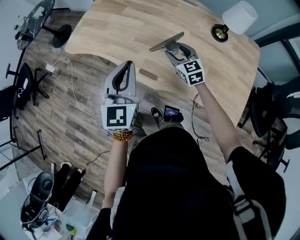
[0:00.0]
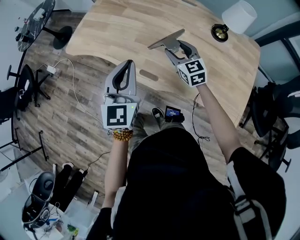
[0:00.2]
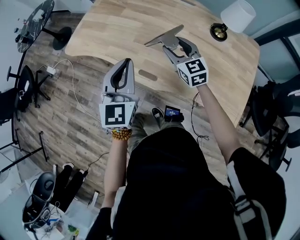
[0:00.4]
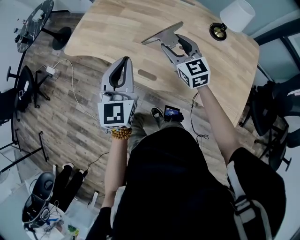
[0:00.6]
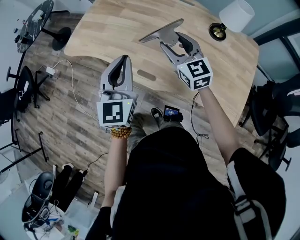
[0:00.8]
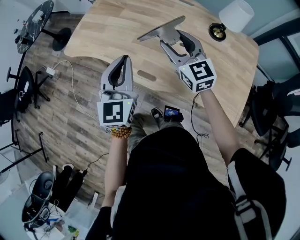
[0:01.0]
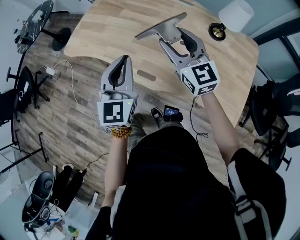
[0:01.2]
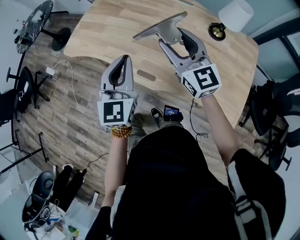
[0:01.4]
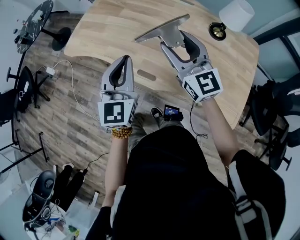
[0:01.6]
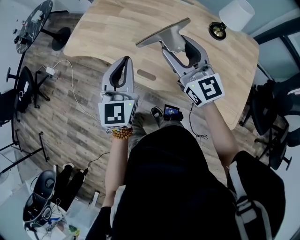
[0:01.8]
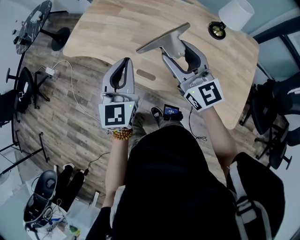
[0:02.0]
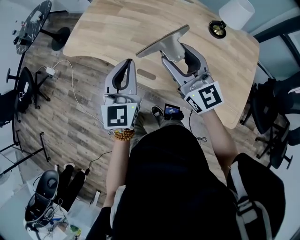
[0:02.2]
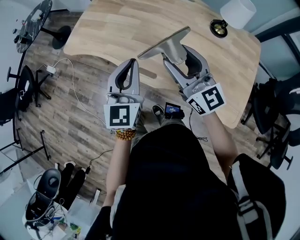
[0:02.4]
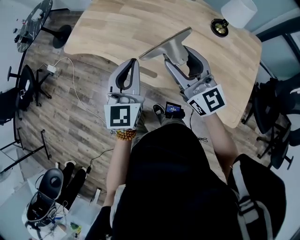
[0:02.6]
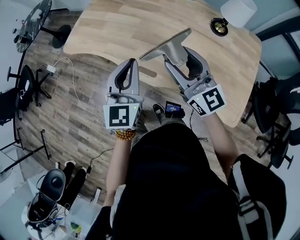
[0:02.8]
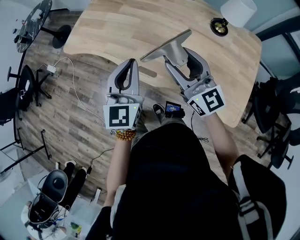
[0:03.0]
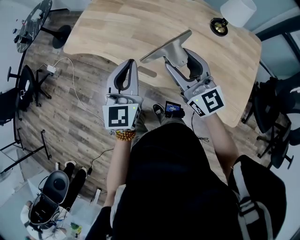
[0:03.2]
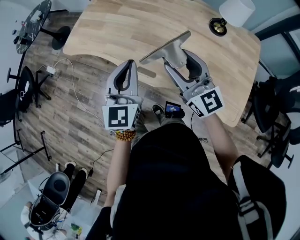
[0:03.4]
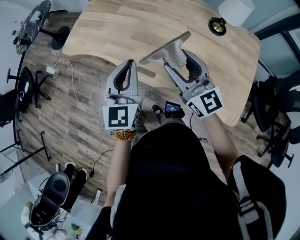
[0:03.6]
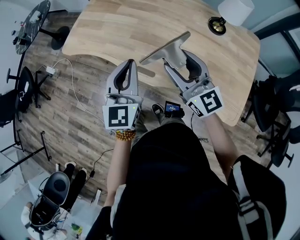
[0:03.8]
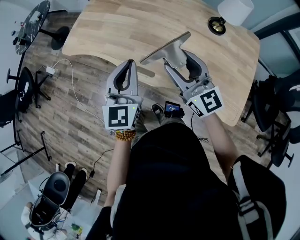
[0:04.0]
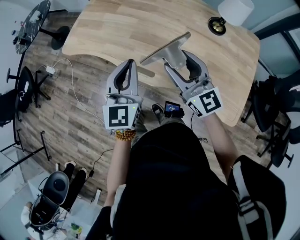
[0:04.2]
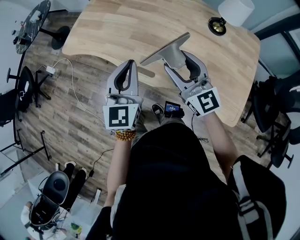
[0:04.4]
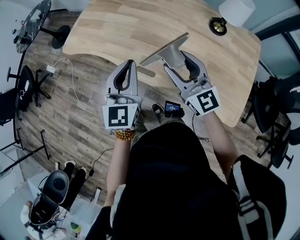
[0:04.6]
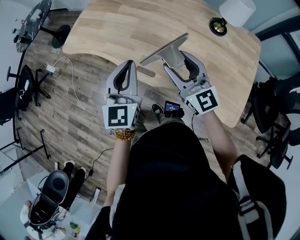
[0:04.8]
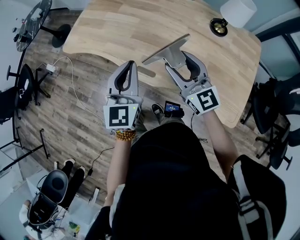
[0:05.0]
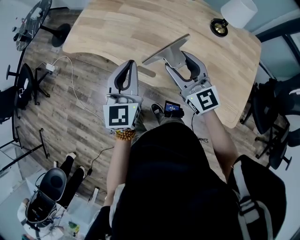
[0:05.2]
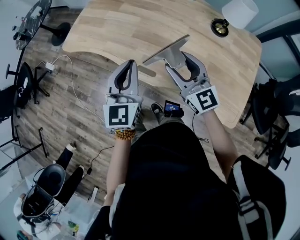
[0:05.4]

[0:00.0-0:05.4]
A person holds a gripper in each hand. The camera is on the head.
0.0 to 1.4 s: The right gripper travels upward by roughly 20 cm, and turns by roughly 30 degrees.
1.4 to 2.8 s: The right gripper travels backward by about 5 cm.
2.8 to 5.4 s: The grippers stay close to where they were, moving slightly.

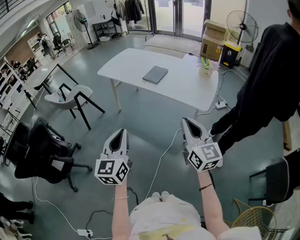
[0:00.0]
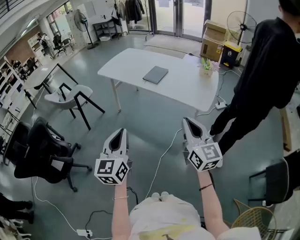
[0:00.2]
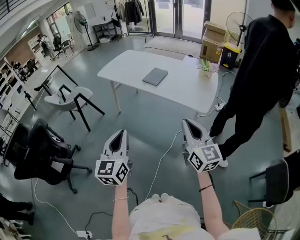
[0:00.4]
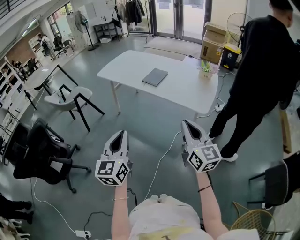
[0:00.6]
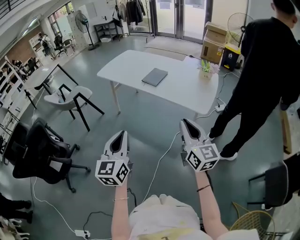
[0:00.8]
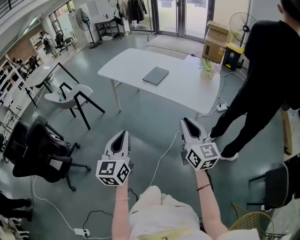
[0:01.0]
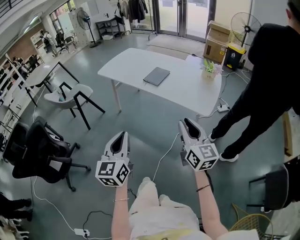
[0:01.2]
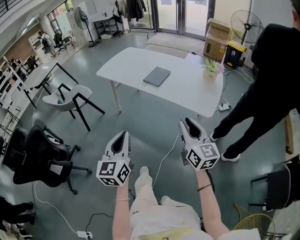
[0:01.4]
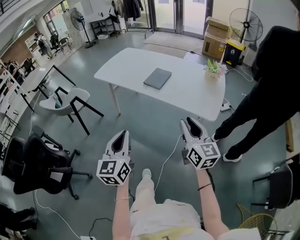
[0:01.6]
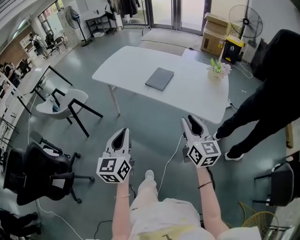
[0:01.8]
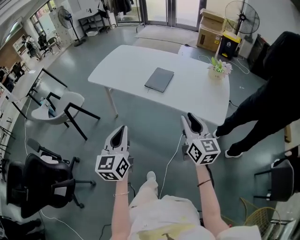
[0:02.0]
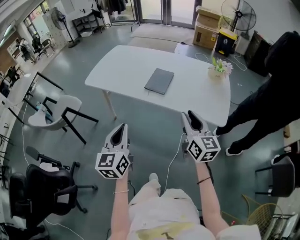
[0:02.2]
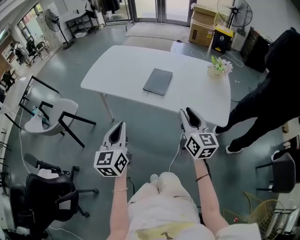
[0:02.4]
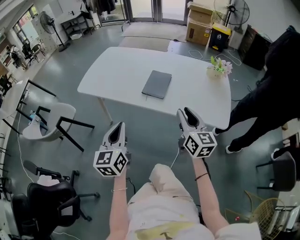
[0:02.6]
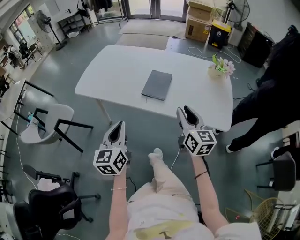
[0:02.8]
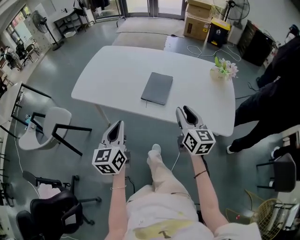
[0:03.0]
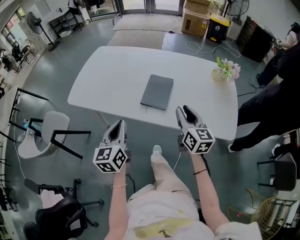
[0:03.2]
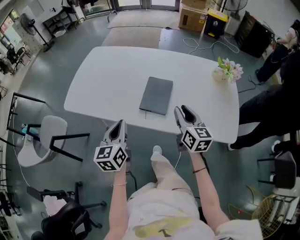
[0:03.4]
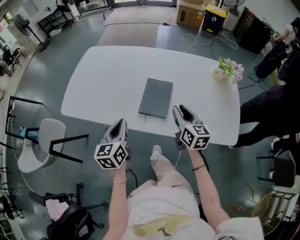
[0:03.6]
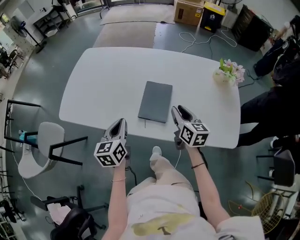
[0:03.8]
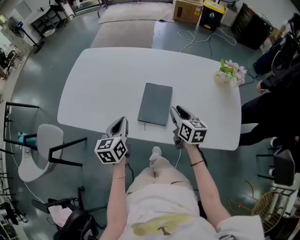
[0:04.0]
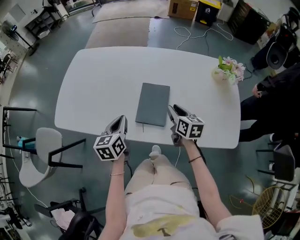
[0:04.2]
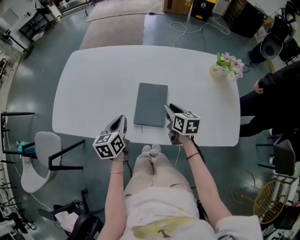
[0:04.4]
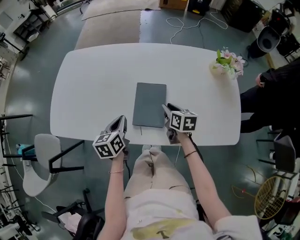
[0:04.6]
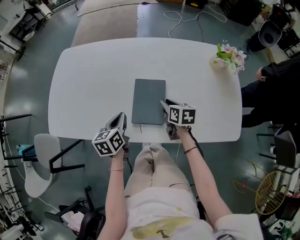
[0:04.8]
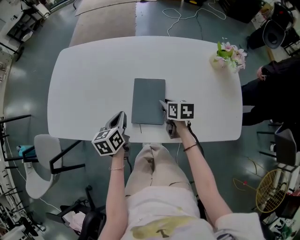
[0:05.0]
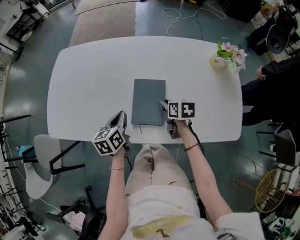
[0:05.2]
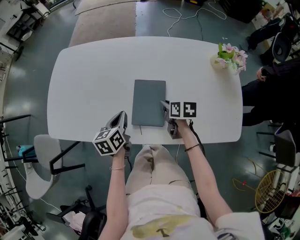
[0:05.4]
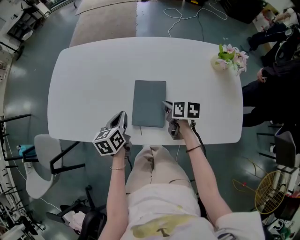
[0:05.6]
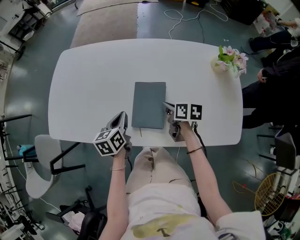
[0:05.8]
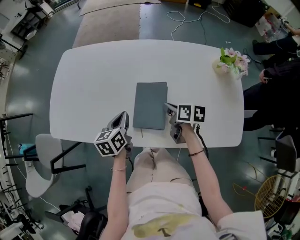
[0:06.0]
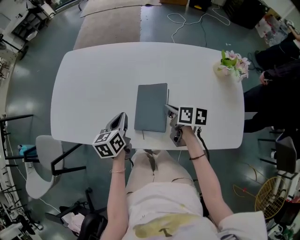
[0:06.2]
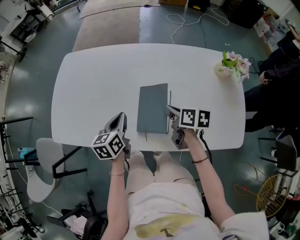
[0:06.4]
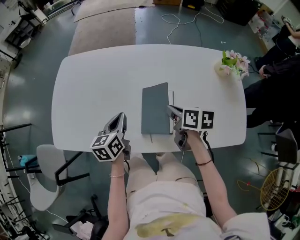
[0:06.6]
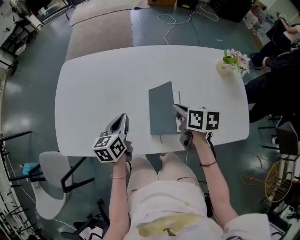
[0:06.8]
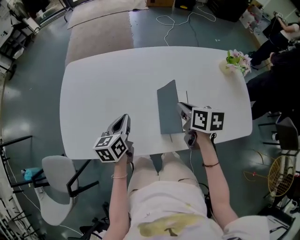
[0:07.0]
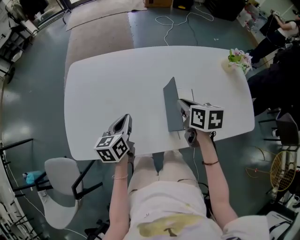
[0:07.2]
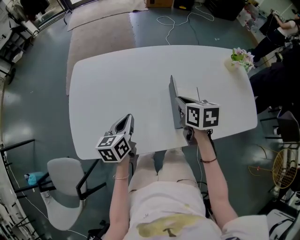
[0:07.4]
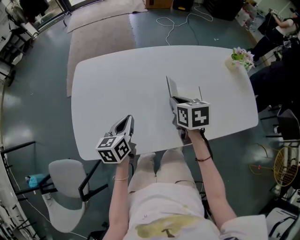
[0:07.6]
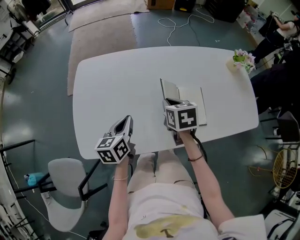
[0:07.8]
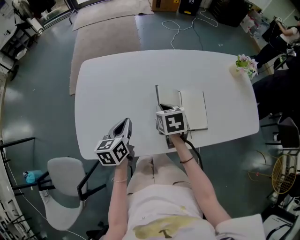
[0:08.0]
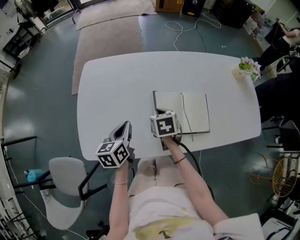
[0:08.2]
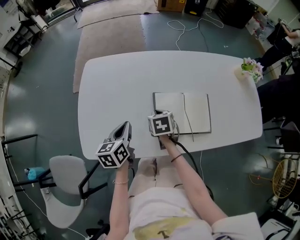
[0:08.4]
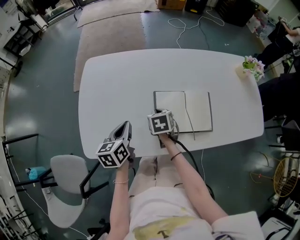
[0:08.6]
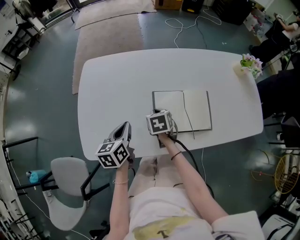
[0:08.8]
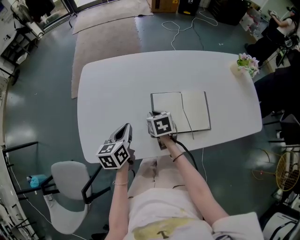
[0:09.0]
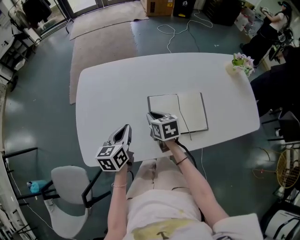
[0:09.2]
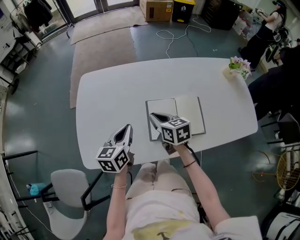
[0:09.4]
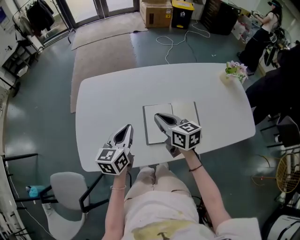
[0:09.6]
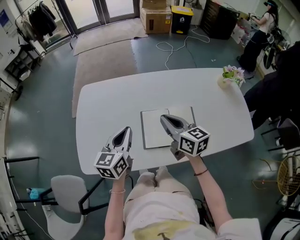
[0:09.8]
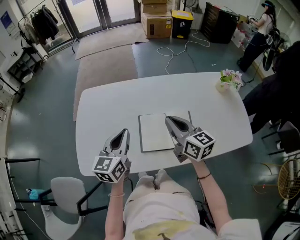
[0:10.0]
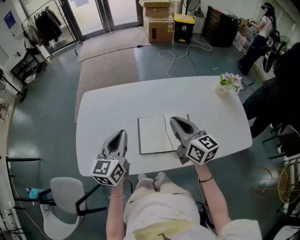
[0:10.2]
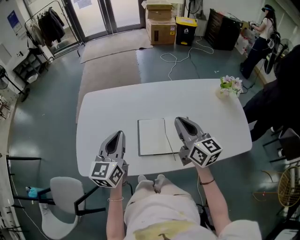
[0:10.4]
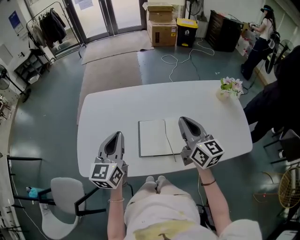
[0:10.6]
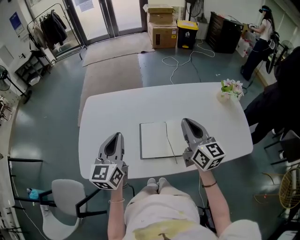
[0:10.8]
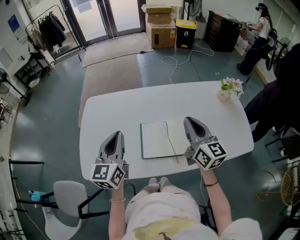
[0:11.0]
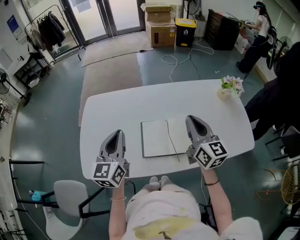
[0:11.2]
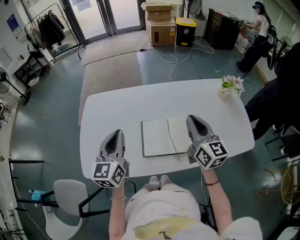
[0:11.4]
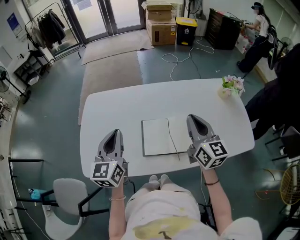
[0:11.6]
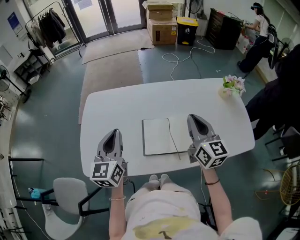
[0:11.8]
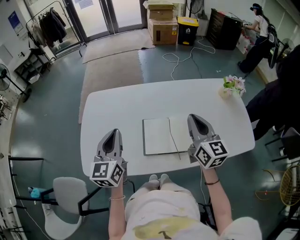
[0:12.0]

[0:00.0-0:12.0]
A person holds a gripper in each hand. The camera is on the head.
0.0 to 1.6 s: The right gripper is displaced forward and downward by roughly 15 cm, and opens up, while the left gripper shifts about 10 cm forward.
1.6 to 3.0 s: The two grippers go approximately 35 cm forward.
3.0 to 4.4 s: Both grippers move forward and downward, about 30 cm. The left gripper swivels approximately 30 degrees. Meanwhile the right gripper rotates approximately 30 degrees.
4.4 to 6.0 s: The right gripper turns by some 20 degrees; the left gripper moves some 5 cm.
6.0 to 7.6 s: The left gripper heads to the left, covering about 20 cm; the right gripper travels to the left and upward by some 20 cm, and turns by some 30 degrees.
7.6 to 9.0 s: The left gripper moves roughly 5 cm; the right gripper is displaced to the left and downward by roughly 15 cm.
9.0 to 10.4 s: The left gripper moves upward and to the right, about 20 cm, and rotates about 30 degrees; the right gripper goes about 30 cm upward and to the right, and tilts its fingers about 50 degrees upward.
10.4 to 12.0 s: The grippers make only small movements.

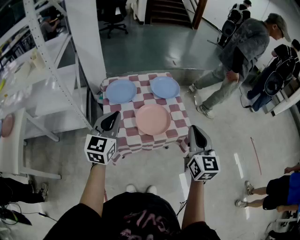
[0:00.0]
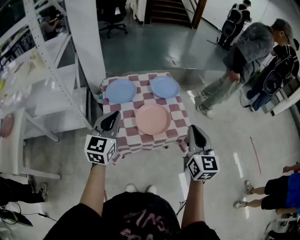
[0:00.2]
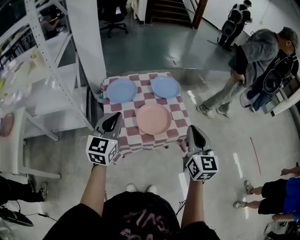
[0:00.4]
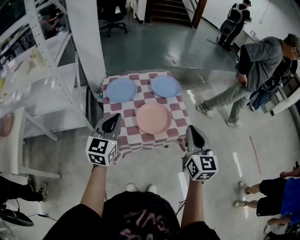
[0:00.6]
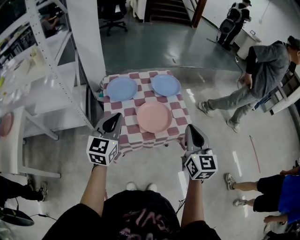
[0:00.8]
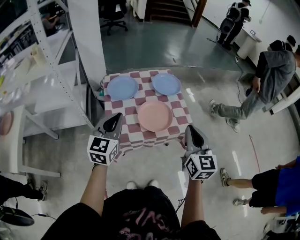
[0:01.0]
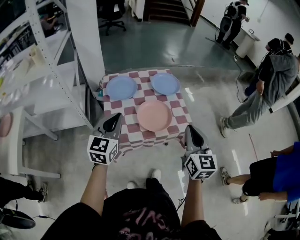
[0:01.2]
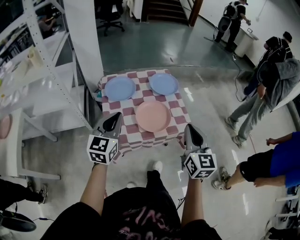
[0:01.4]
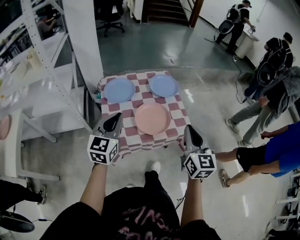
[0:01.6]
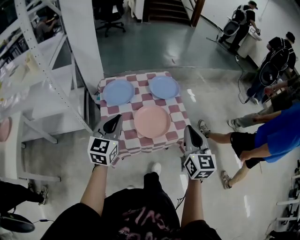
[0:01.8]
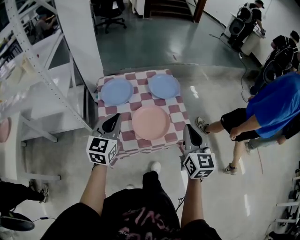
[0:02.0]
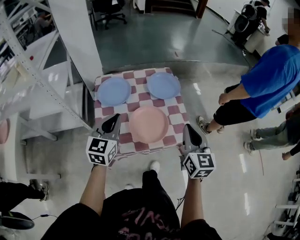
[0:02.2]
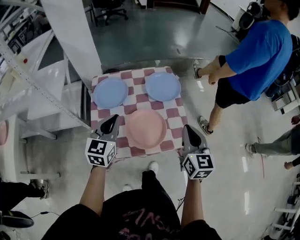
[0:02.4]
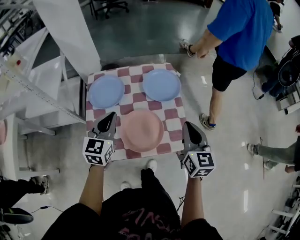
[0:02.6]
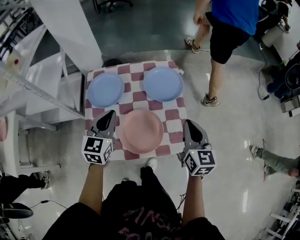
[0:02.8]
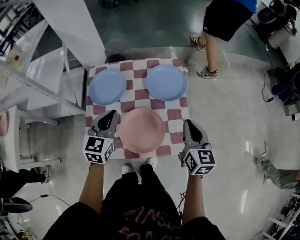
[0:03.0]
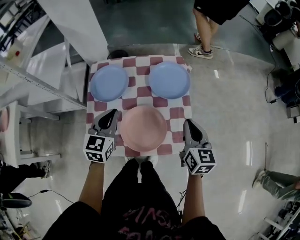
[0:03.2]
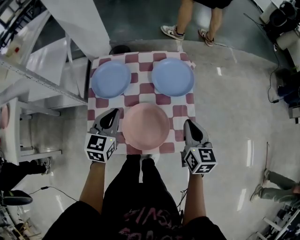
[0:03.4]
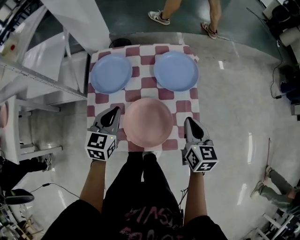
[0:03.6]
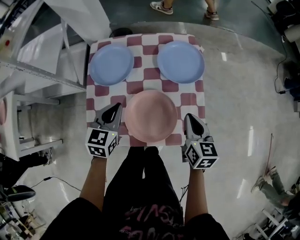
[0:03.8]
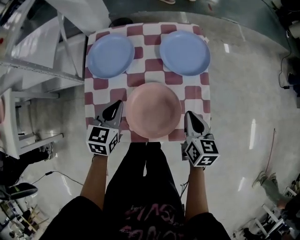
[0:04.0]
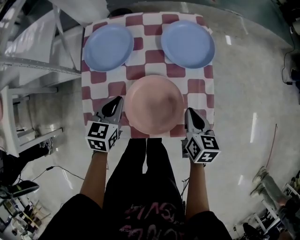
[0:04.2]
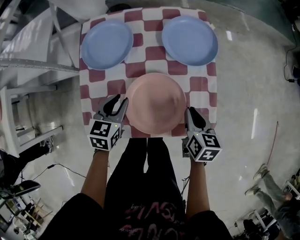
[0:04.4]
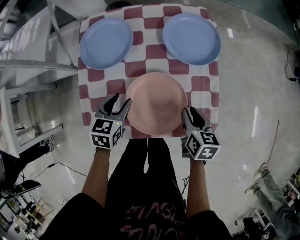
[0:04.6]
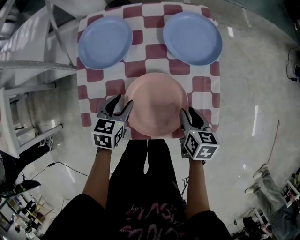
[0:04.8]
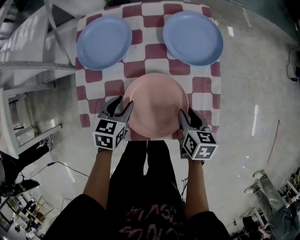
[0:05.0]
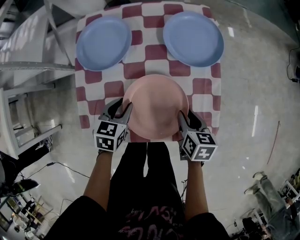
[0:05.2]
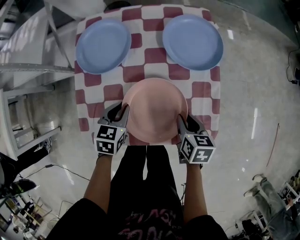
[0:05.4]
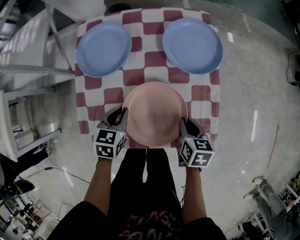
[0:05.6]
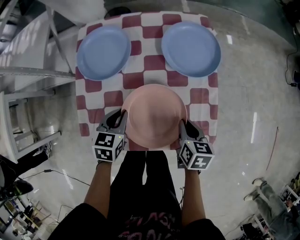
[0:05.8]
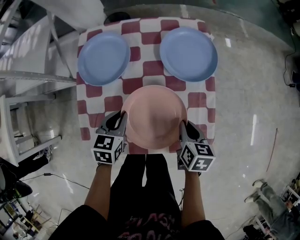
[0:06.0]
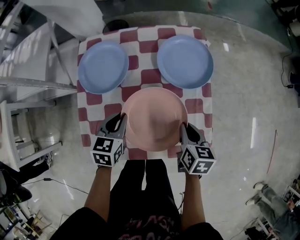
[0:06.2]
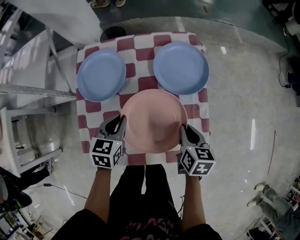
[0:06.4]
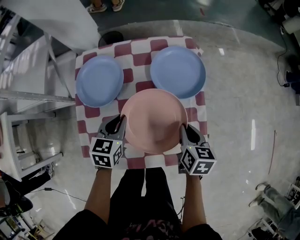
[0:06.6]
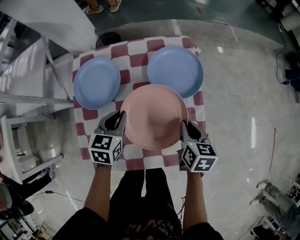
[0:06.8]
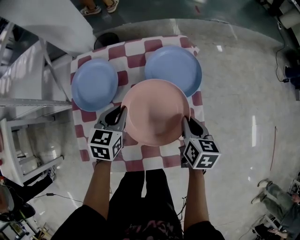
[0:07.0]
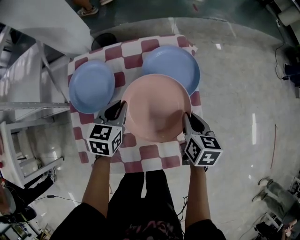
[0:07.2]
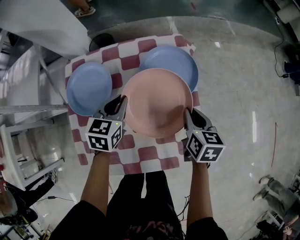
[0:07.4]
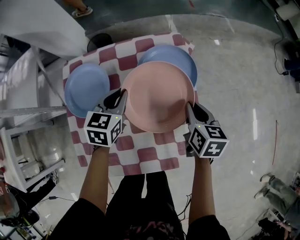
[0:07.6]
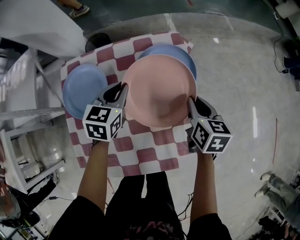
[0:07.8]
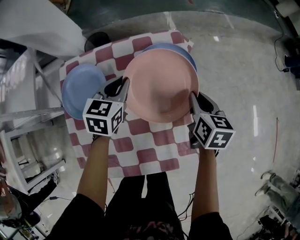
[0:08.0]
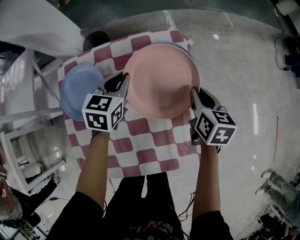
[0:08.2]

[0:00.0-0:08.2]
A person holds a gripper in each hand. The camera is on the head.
0.0 to 1.6 s: The grippers make only small movements.
1.6 to 3.2 s: Both grippers travel together forward and downward, about 30 cm. The right gripper rotates about 20 degrees.
3.2 to 5.0 s: The grippers both shift downward by some 25 cm. The right gripper changes its angle by roughly 30 degrees, and opens, while the left gripper changes its angle by approximately 30 degrees, and opens.
5.0 to 6.6 s: The grippers both shift forward and upward by approximately 10 cm. The right gripper closes. The left gripper closes its fingers.
6.6 to 8.2 s: The left gripper heads forward, covering approximately 20 cm, while the right gripper heads forward and to the right, covering roughly 15 cm.
